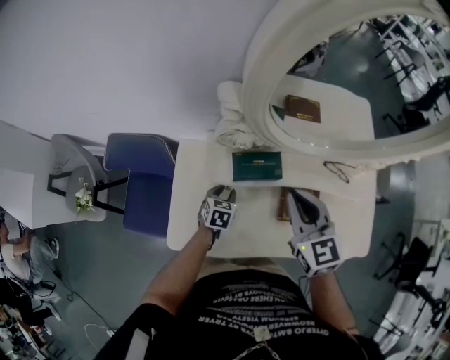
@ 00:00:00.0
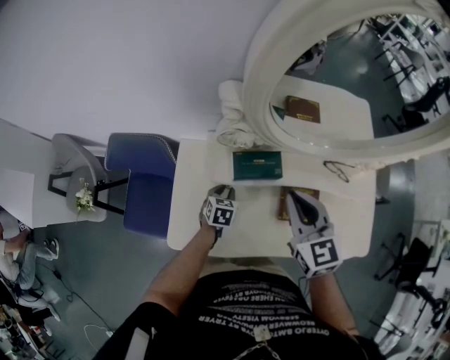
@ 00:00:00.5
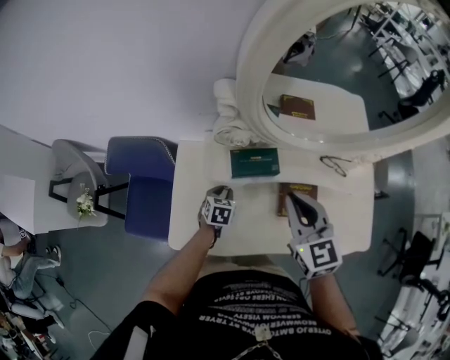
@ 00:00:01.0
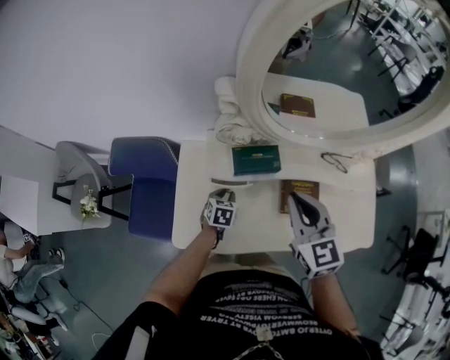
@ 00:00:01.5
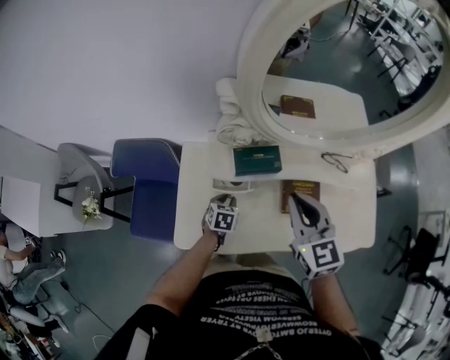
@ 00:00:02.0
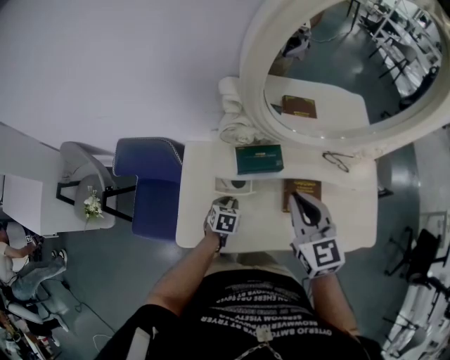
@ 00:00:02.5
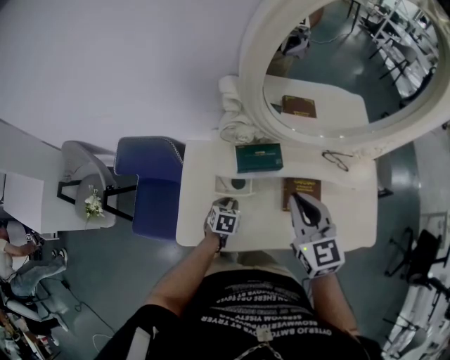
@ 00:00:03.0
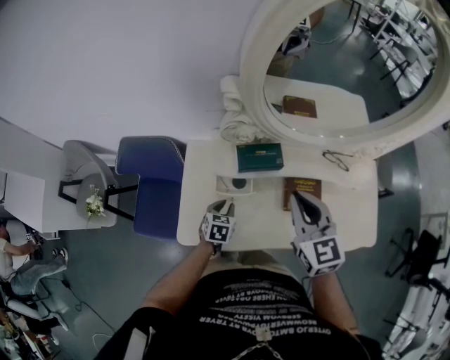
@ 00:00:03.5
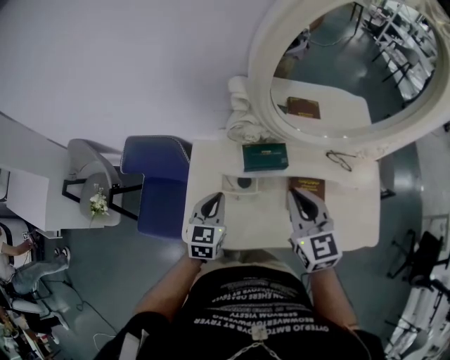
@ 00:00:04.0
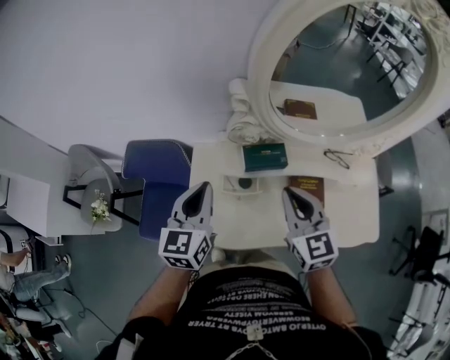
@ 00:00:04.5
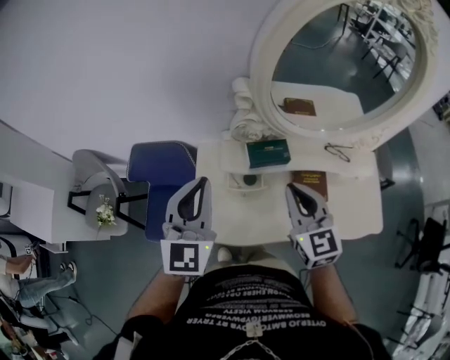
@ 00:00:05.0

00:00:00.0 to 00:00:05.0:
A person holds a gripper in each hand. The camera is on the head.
00:00:00.0 to 00:00:02.5: The grippers both shift backward by approximately 5 cm.
00:00:02.5 to 00:00:05.0: The left gripper goes some 40 cm upward, and points its fingers about 50 degrees further upward. Meanwhile the right gripper moves to the left, some 5 cm.

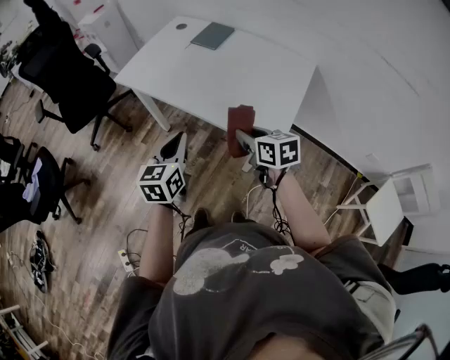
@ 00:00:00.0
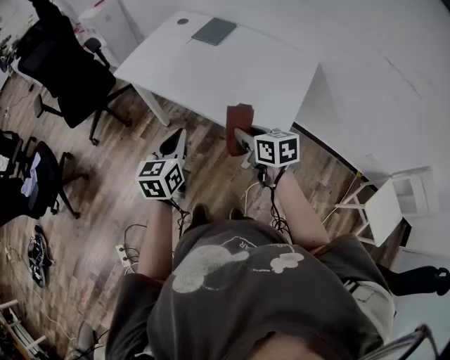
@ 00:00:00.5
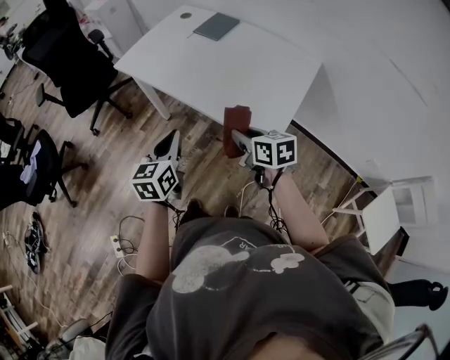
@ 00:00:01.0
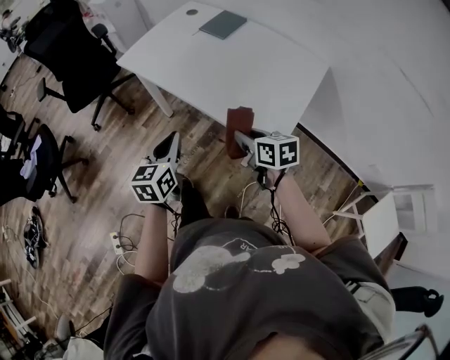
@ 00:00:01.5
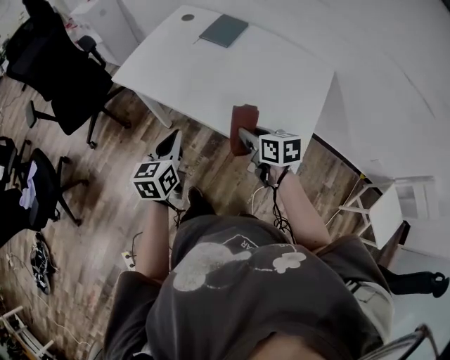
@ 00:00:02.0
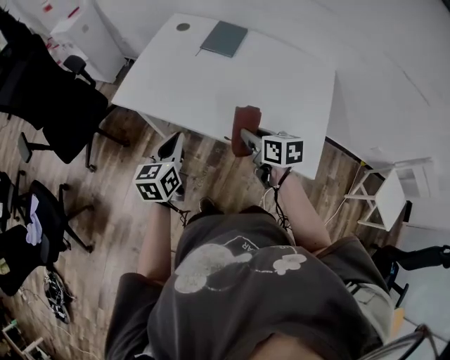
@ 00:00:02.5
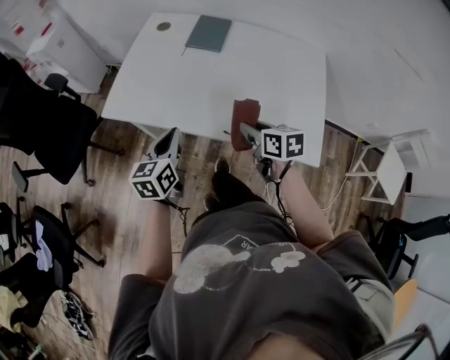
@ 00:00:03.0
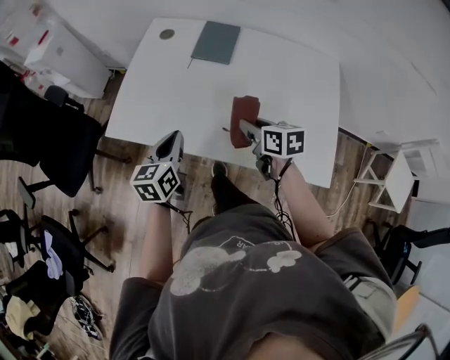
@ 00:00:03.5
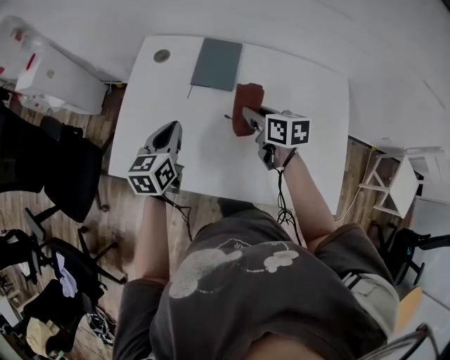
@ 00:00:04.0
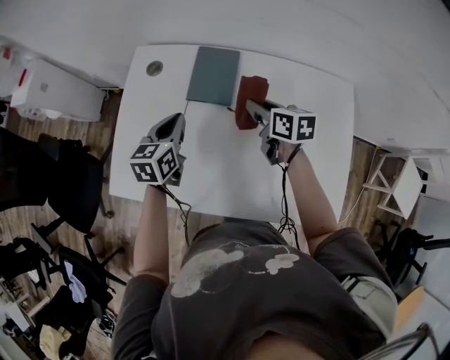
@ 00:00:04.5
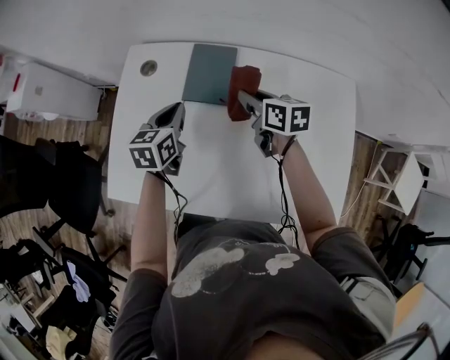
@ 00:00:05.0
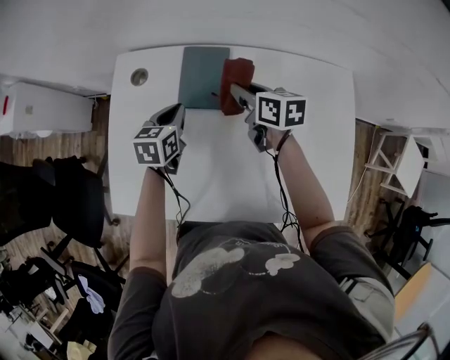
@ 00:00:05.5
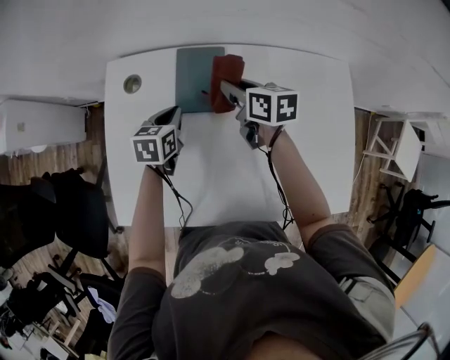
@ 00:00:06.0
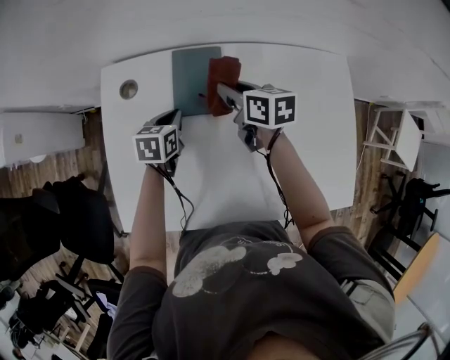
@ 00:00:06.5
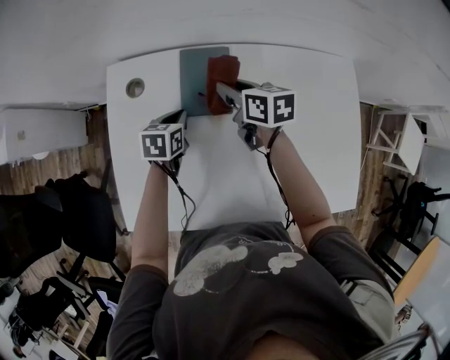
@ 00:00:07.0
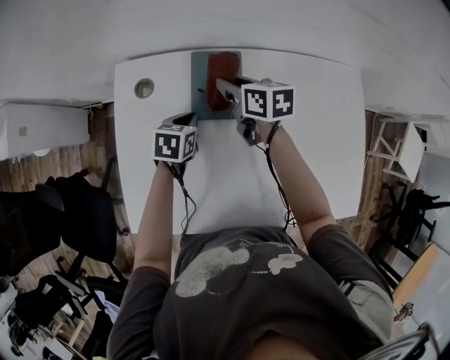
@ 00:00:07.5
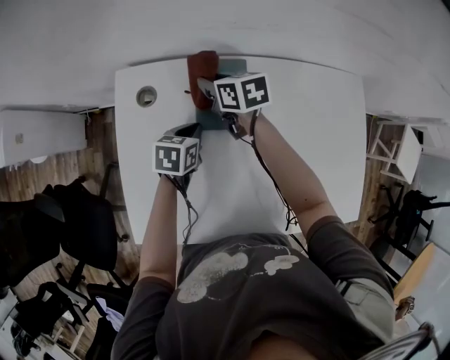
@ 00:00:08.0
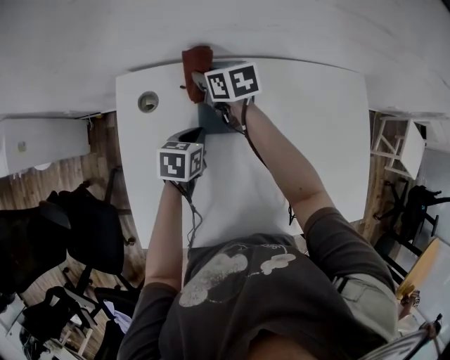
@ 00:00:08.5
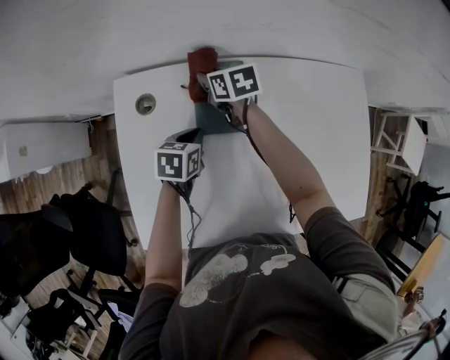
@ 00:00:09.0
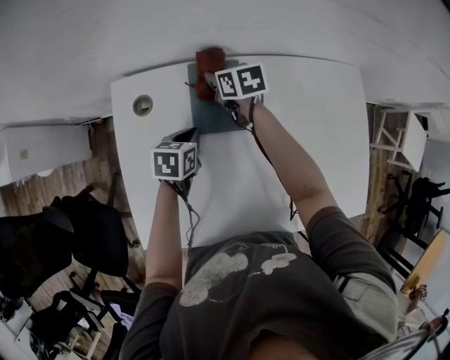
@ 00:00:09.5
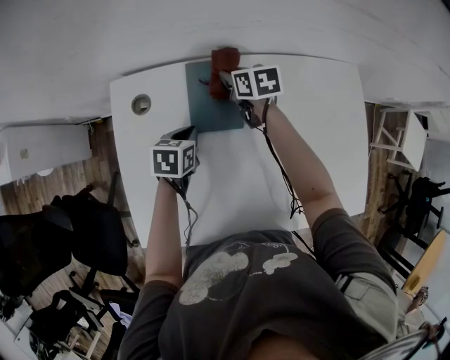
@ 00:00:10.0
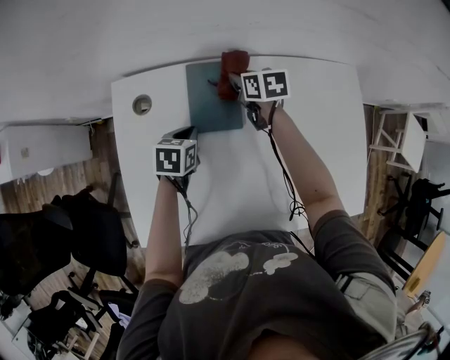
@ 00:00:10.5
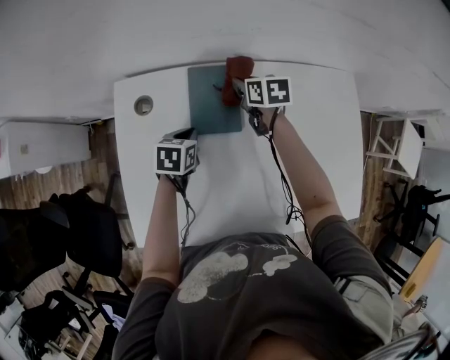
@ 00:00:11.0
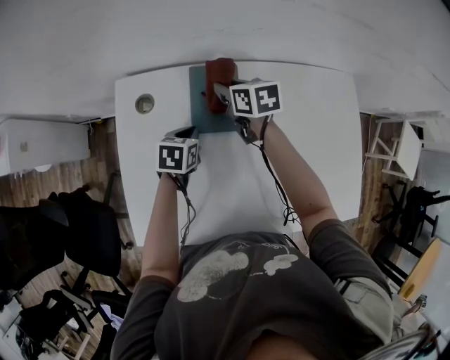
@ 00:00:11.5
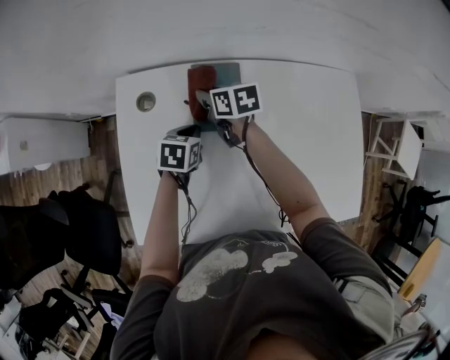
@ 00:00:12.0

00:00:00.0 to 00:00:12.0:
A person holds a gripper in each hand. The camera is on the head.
00:00:00.0 to 00:00:02.0: The right gripper heads forward and downward, covering some 10 cm. Meanwhile the left gripper heads forward and to the left, covering some 15 cm.
00:00:02.0 to 00:00:04.0: The two grippers go roughly 35 cm forward. The right gripper changes its angle by about 20 degrees. The left gripper rotates roughly 20 degrees.
00:00:04.0 to 00:00:06.0: The left gripper is displaced forward and downward by some 25 cm, and turns by roughly 20 degrees; the right gripper shifts some 20 cm forward.
00:00:06.0 to 00:00:08.0: The right gripper is displaced to the left and forward by approximately 15 cm.
00:00:08.0 to 00:00:10.0: The right gripper is displaced to the right by about 10 cm.
00:00:10.0 to 00:00:12.0: The right gripper shifts about 10 cm to the left and backward.

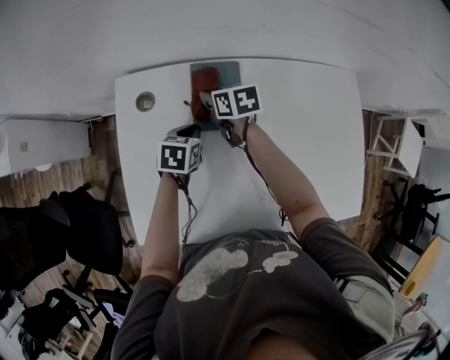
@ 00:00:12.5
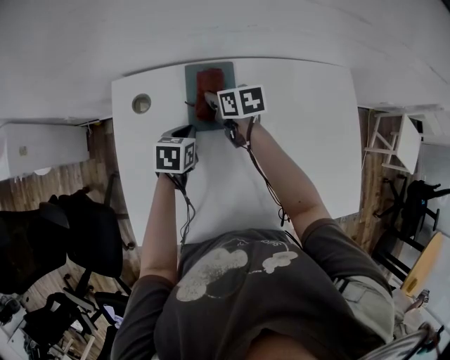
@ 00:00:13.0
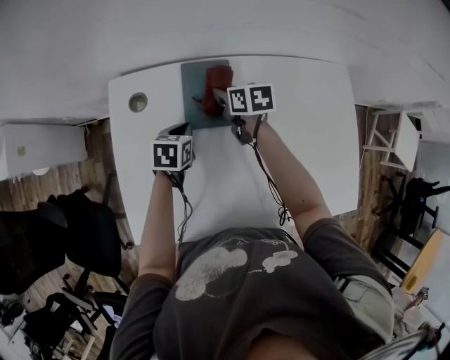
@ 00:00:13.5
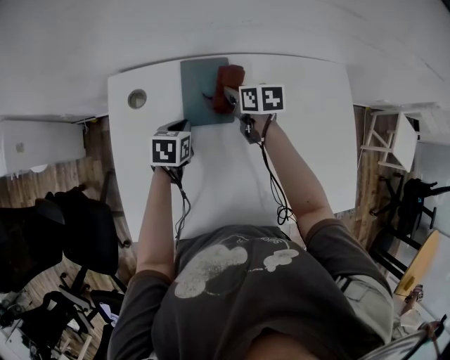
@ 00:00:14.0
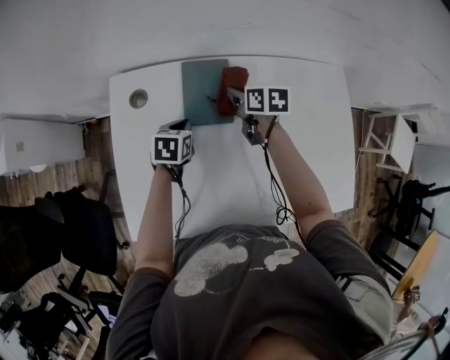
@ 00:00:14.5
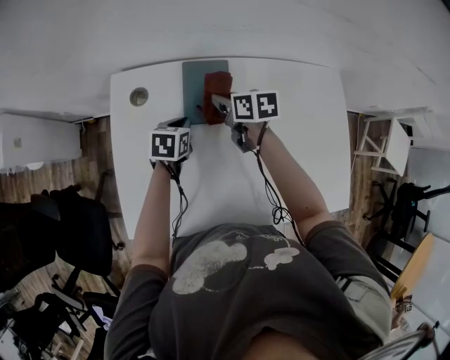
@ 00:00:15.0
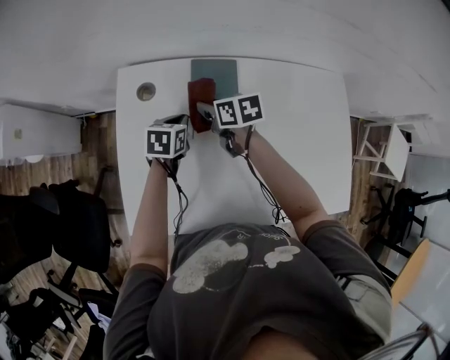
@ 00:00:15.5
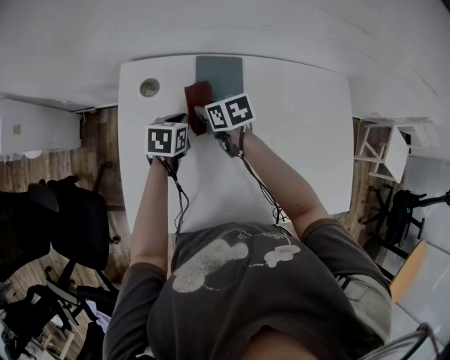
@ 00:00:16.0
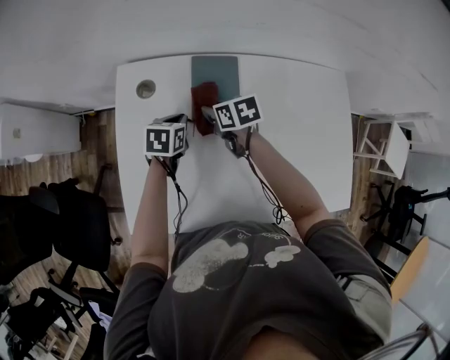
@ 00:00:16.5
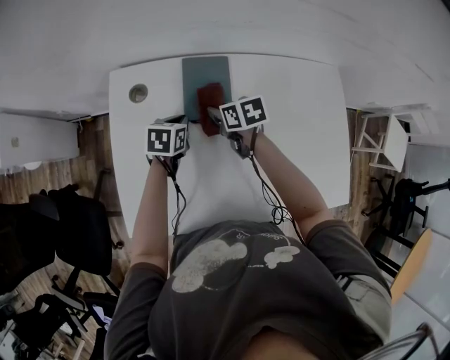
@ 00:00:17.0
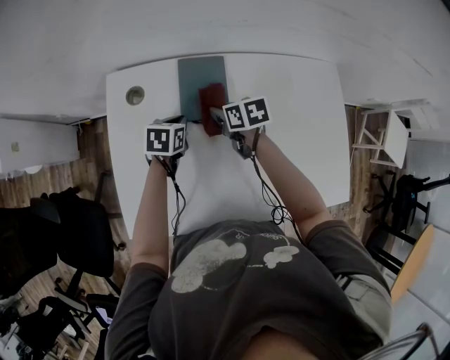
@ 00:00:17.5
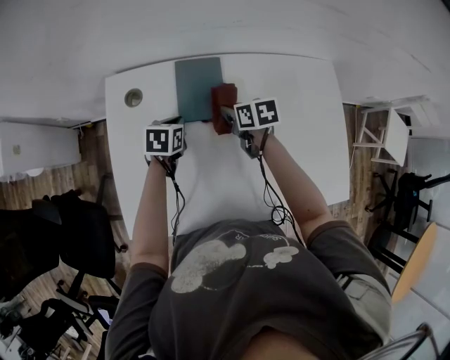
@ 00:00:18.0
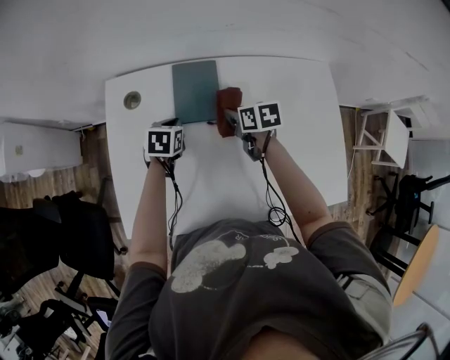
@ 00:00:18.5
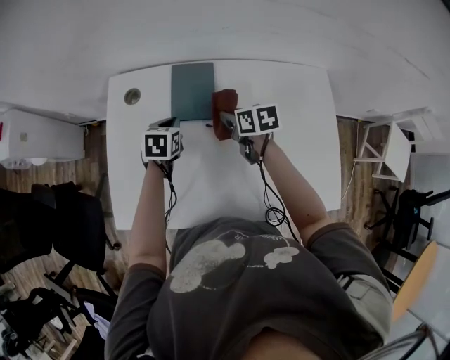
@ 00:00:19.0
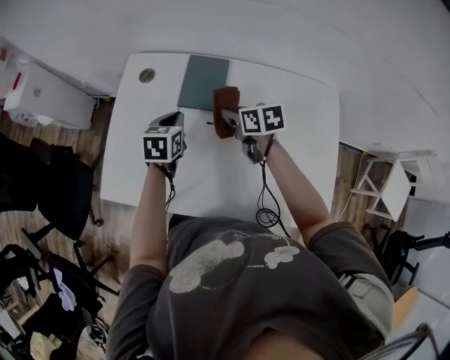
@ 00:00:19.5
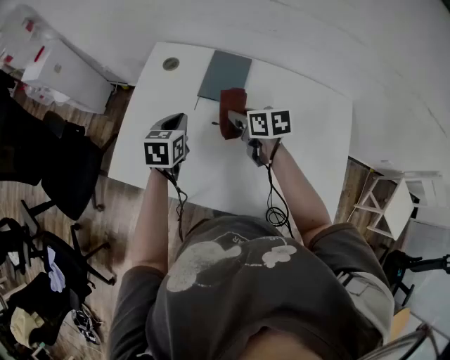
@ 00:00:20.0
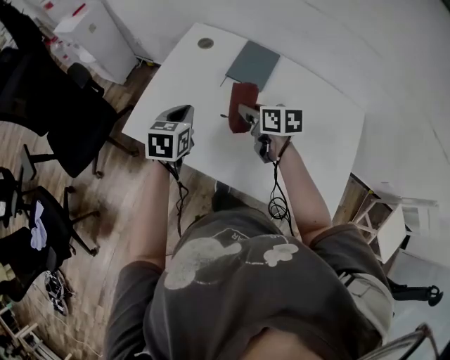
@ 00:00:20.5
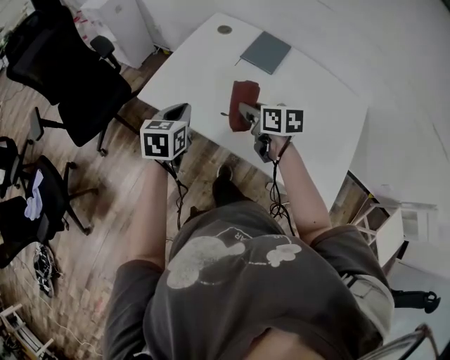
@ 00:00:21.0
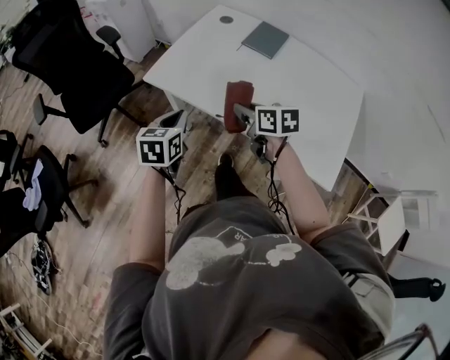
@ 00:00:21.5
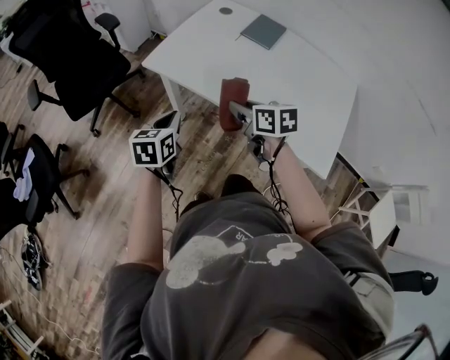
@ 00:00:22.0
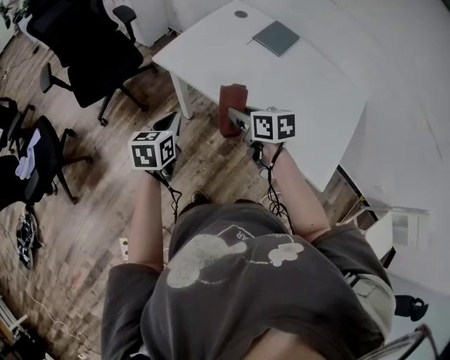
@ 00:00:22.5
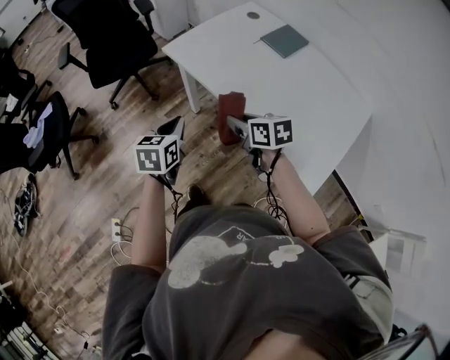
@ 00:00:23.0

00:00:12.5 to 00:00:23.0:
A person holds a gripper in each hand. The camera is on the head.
00:00:12.5 to 00:00:14.5: The right gripper heads to the right, covering approximately 10 cm.
00:00:14.5 to 00:00:16.5: The right gripper travels to the left by about 10 cm.
00:00:16.5 to 00:00:19.0: The right gripper heads to the right, covering some 15 cm; the left gripper shifts some 5 cm to the right.
00:00:19.0 to 00:00:21.0: The right gripper changes place by roughly 30 cm, and swivels approximately 30 degrees. Meanwhile the left gripper changes place by roughly 40 cm, and swivels some 40 degrees.
00:00:21.0 to 00:00:23.0: Both grippers move backward, about 20 cm. The right gripper rotates some 20 degrees.
